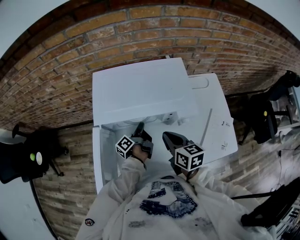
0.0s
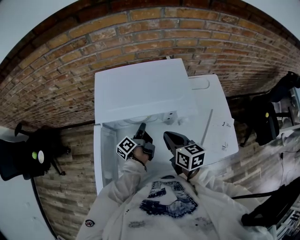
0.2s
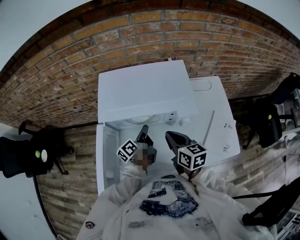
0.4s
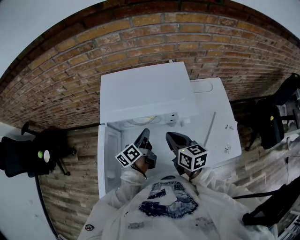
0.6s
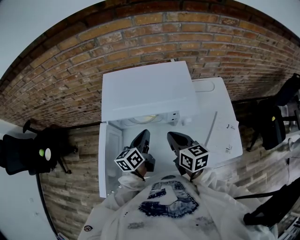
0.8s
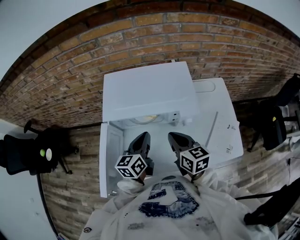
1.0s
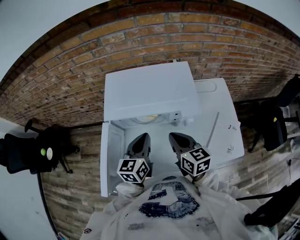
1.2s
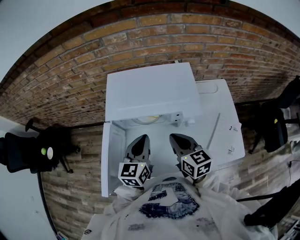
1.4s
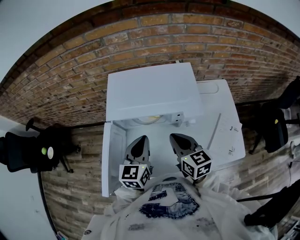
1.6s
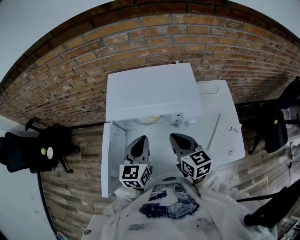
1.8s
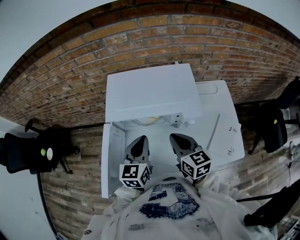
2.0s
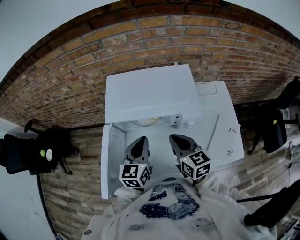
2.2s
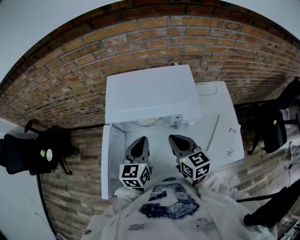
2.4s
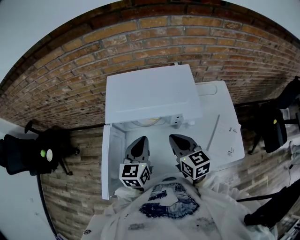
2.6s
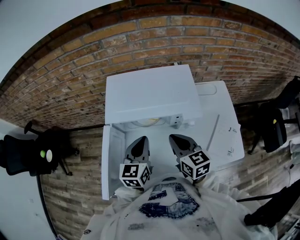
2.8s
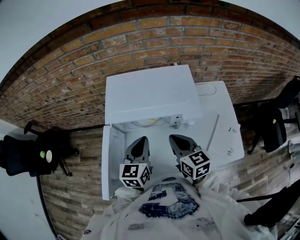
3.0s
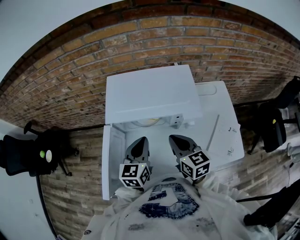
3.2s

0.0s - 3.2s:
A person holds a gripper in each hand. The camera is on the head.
0.0s - 1.6s: The right gripper heads upward, covering about 5 cm.

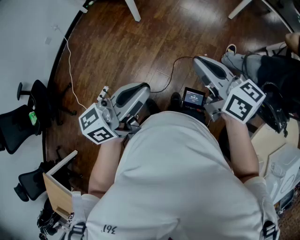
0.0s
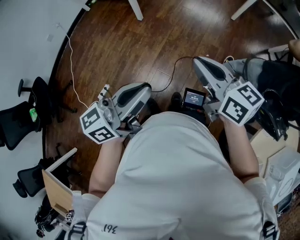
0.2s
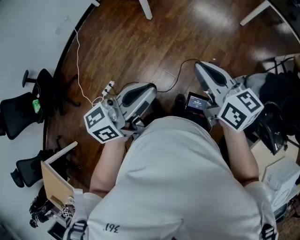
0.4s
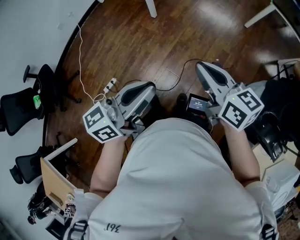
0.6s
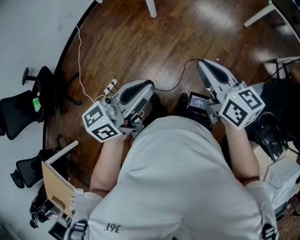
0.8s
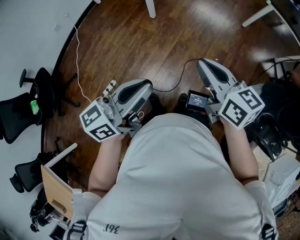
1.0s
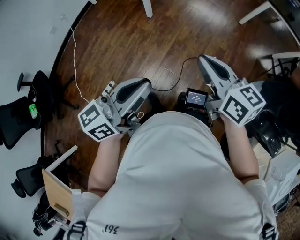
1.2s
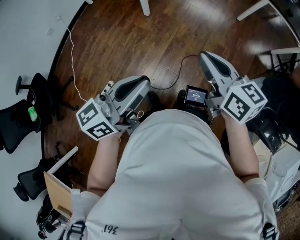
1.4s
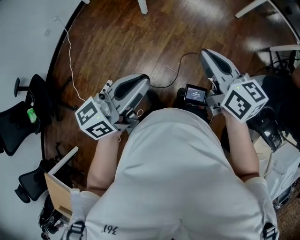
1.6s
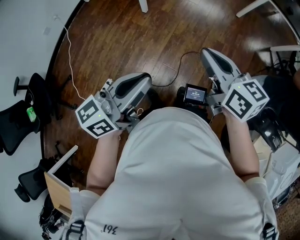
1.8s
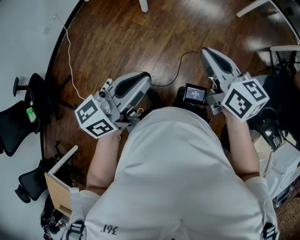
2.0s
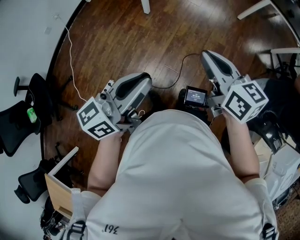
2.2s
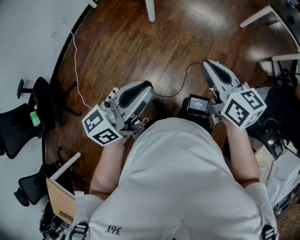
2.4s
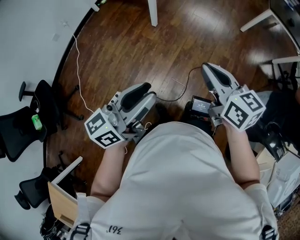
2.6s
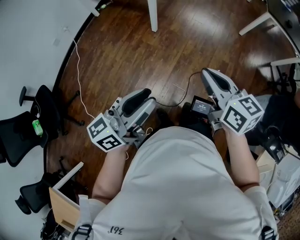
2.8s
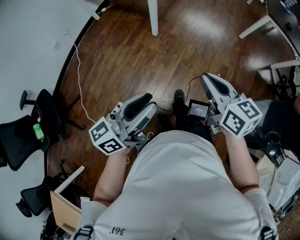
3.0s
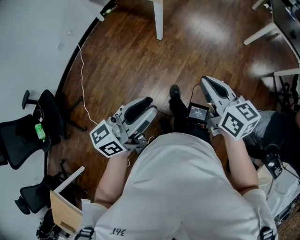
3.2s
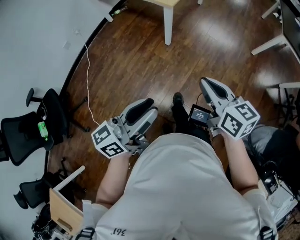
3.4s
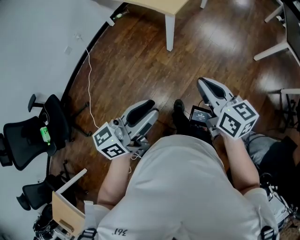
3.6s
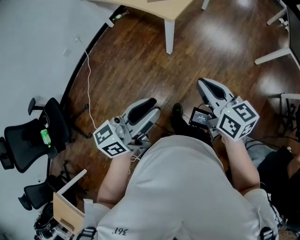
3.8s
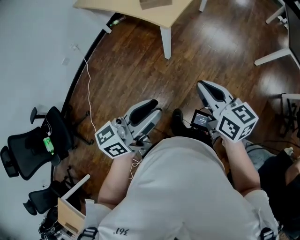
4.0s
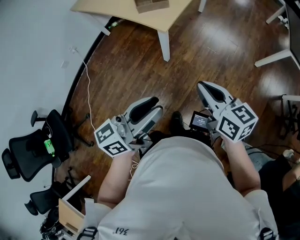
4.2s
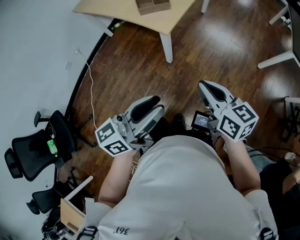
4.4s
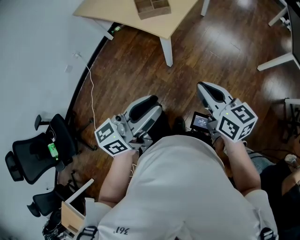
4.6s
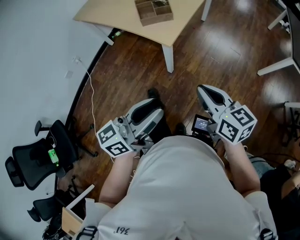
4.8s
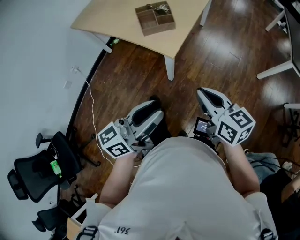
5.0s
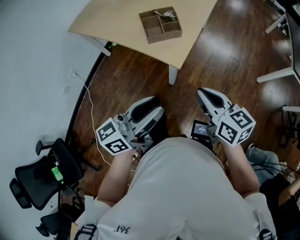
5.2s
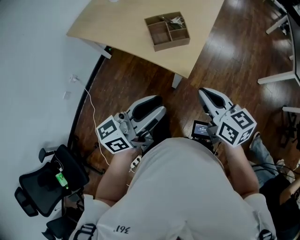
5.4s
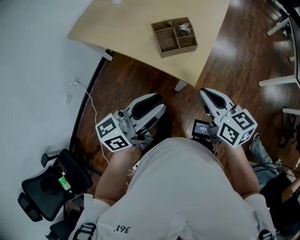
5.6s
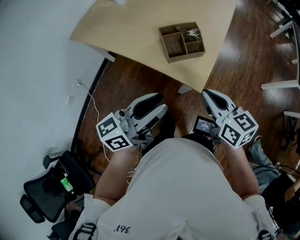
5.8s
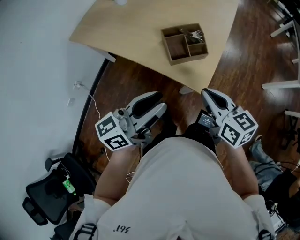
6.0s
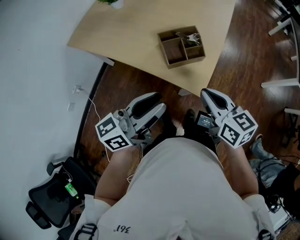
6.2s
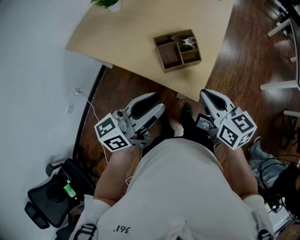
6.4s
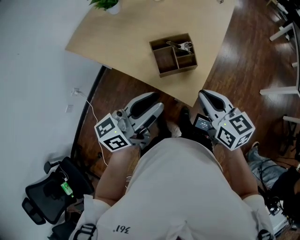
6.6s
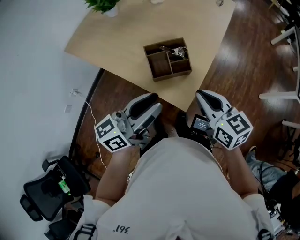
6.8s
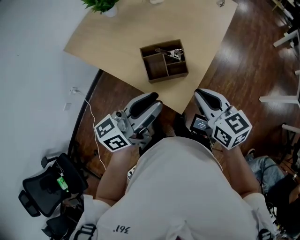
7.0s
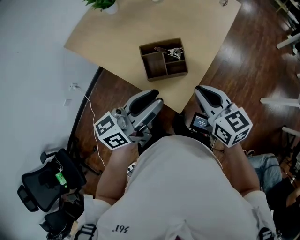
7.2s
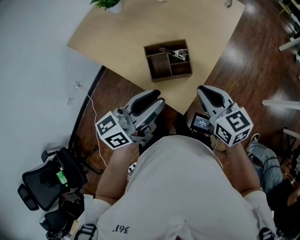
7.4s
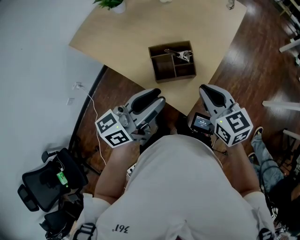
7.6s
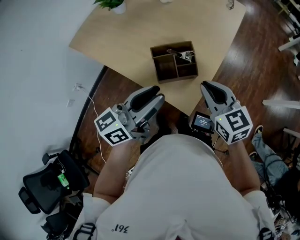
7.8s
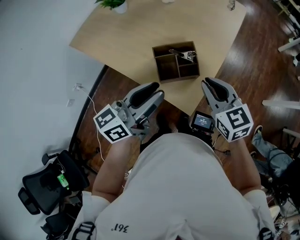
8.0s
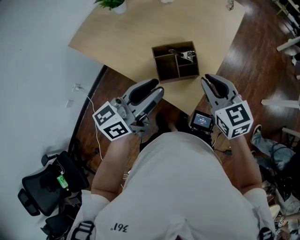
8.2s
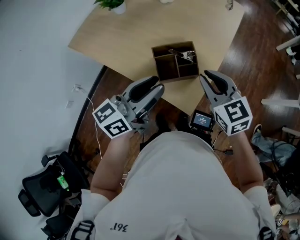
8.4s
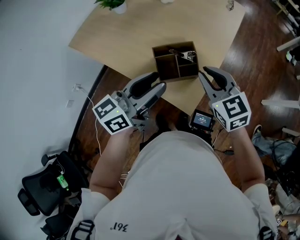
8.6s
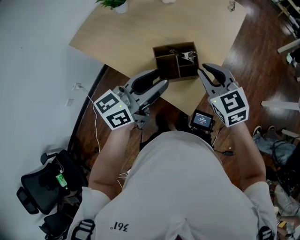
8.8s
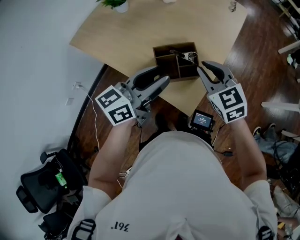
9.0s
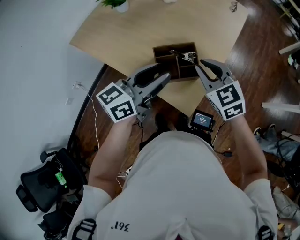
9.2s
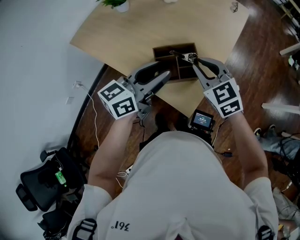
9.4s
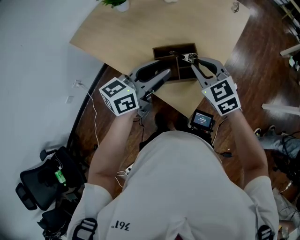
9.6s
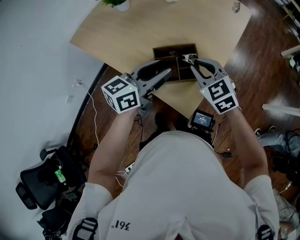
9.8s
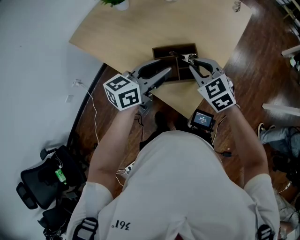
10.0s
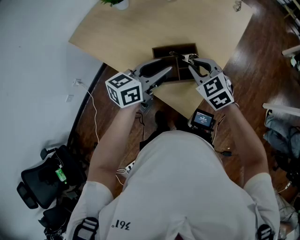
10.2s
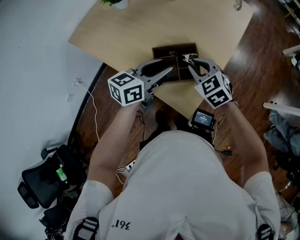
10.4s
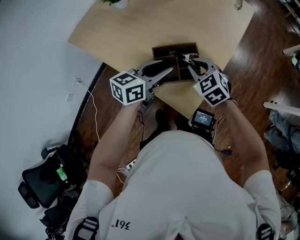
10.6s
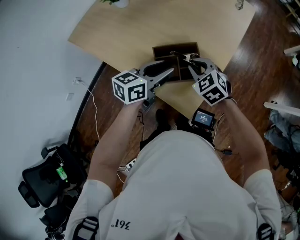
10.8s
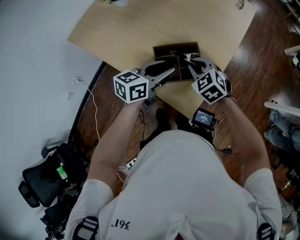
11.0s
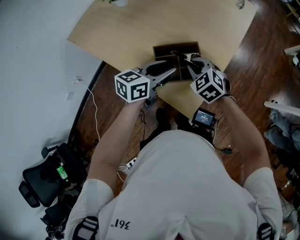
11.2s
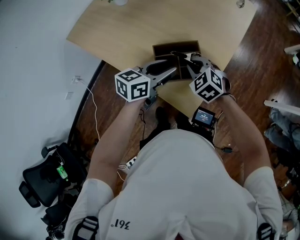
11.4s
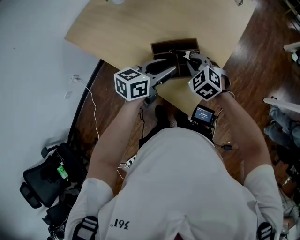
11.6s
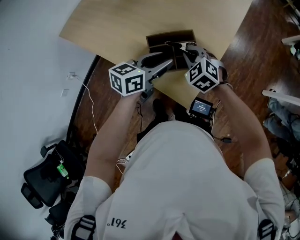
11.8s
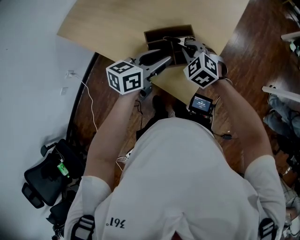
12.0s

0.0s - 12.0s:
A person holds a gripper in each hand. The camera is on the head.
0.0s - 1.6s: Both grippers travel together to the left, some 10 cm.
1.6s - 3.0s: The two grippers go roughly 10 cm to the left. The left gripper opens up.
3.0s - 4.4s: Both grippers travel together forward, about 30 cm.
4.4s - 6.0s: The grippers both shift forward and to the left by some 40 cm.
6.0s - 7.6s: The grippers both shift forward and to the right by about 15 cm.
7.6s - 9.0s: Both grippers move forward, approximately 5 cm. The right gripper changes its angle by about 20 degrees.
9.0s - 10.4s: The right gripper moves downward, roughly 10 cm; the left gripper moves downward and forward, about 10 cm.
10.4s - 12.0s: The right gripper changes place by some 5 cm.

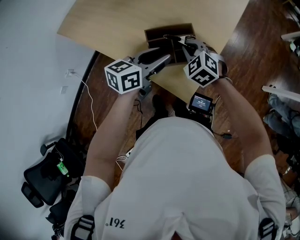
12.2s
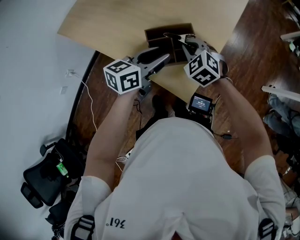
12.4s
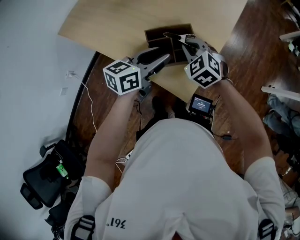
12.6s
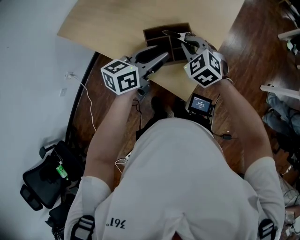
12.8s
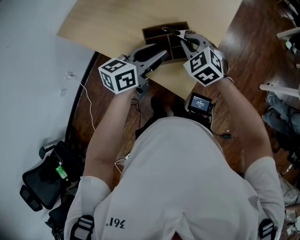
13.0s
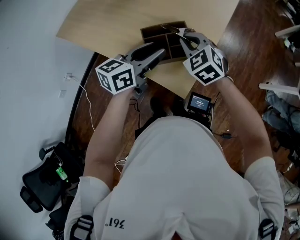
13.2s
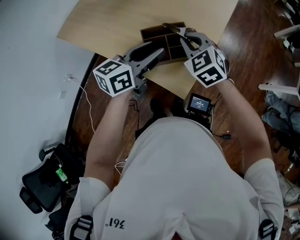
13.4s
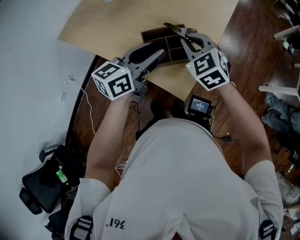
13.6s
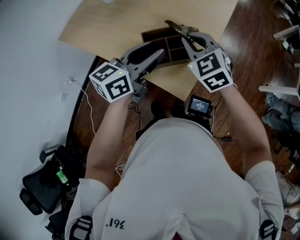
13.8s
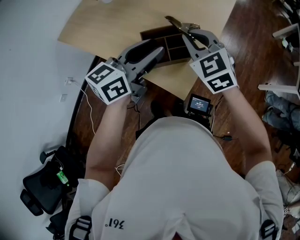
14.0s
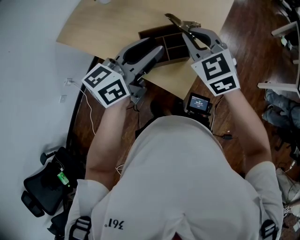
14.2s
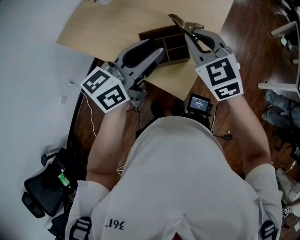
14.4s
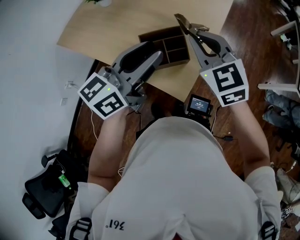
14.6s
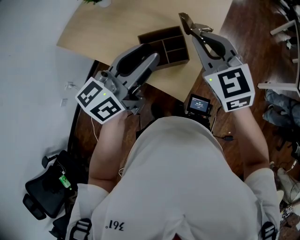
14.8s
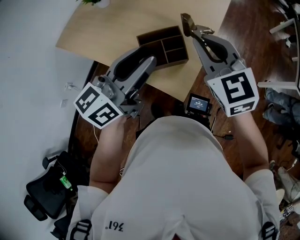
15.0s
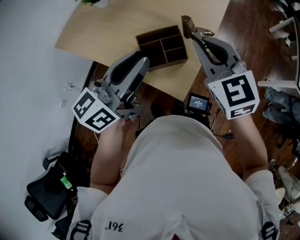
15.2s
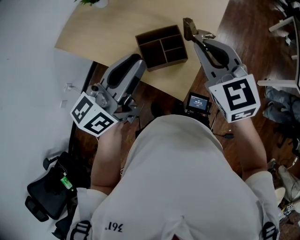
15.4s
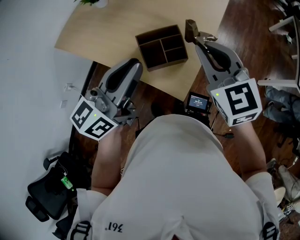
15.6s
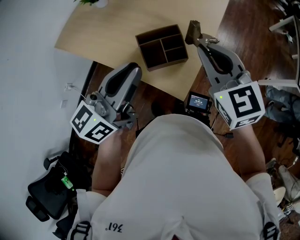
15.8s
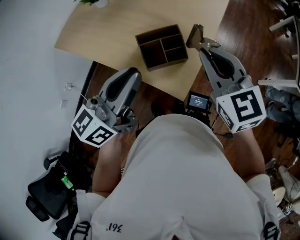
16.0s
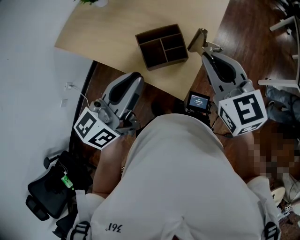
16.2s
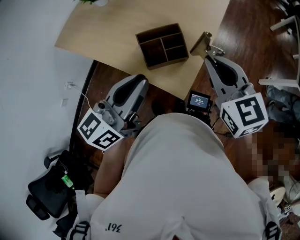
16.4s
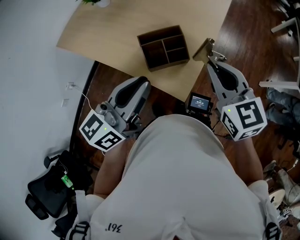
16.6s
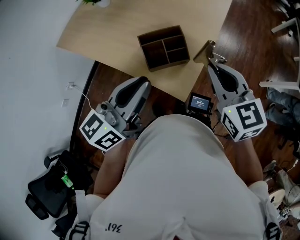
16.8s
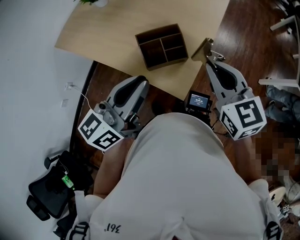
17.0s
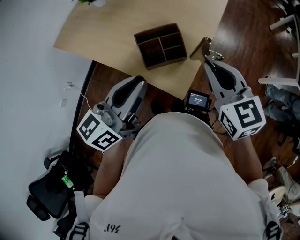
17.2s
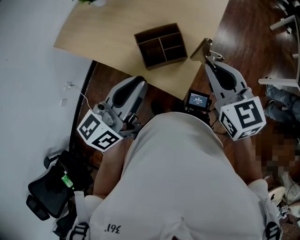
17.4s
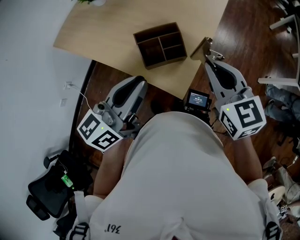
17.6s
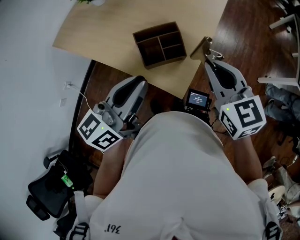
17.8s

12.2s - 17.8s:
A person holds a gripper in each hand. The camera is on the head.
12.2s - 13.6s: Both grippers move upward, some 10 cm.
13.6s - 15.0s: The two grippers go roughly 10 cm upward.
15.0s - 16.4s: The right gripper ends up some 5 cm from where it was. Meanwhile the left gripper travels backward by approximately 5 cm, and closes its fingers.
16.4s - 17.8s: The grippers make only small movements.

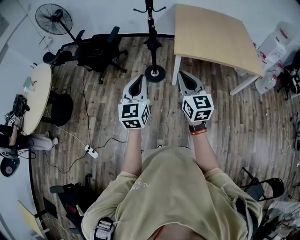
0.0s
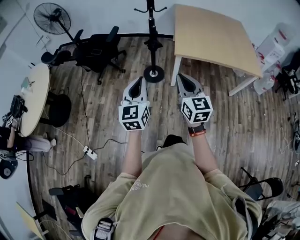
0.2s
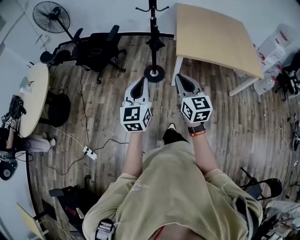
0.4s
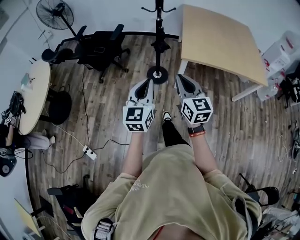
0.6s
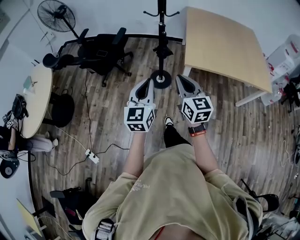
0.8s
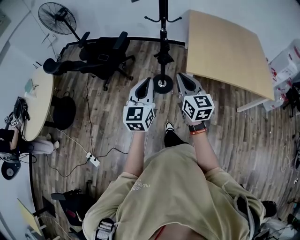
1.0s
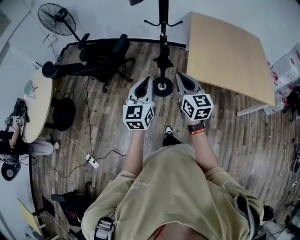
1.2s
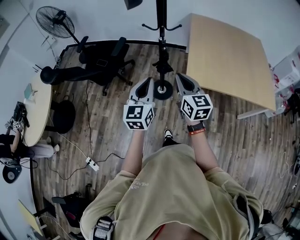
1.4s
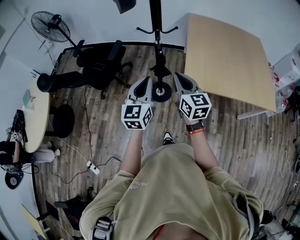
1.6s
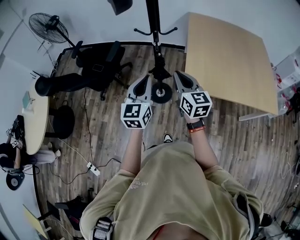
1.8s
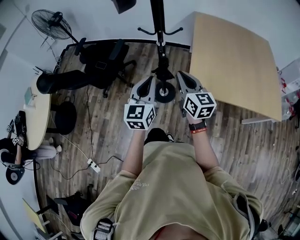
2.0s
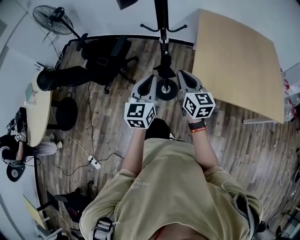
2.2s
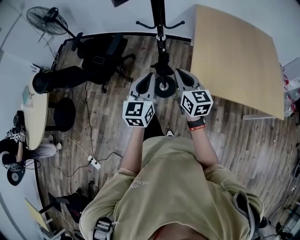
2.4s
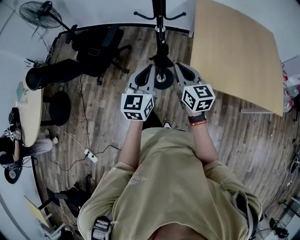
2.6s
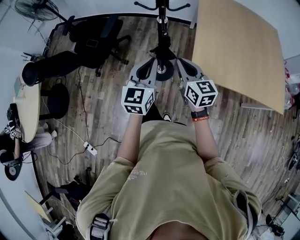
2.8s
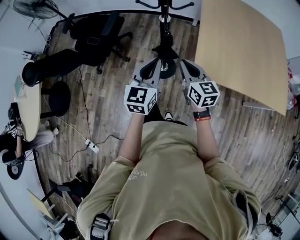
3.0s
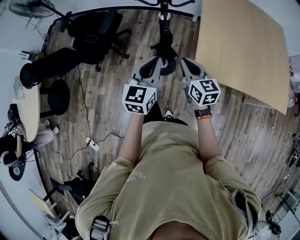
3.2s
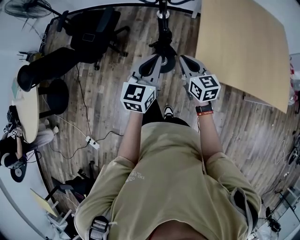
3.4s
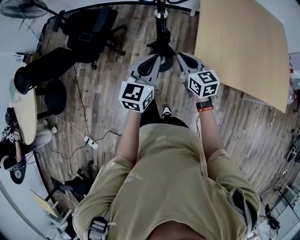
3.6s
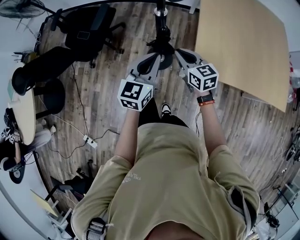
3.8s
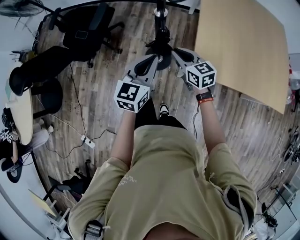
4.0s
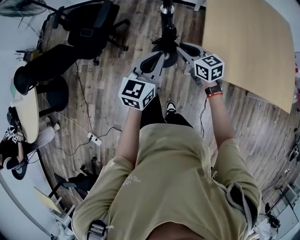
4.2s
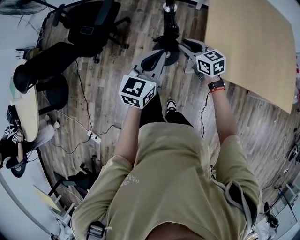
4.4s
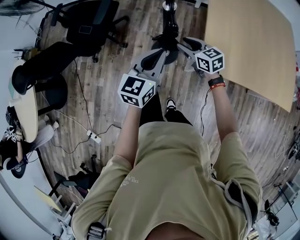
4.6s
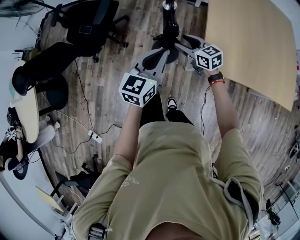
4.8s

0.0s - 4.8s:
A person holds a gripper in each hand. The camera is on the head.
0.0s - 1.6s: Both grippers travel together forward, some 40 cm.
1.6s - 3.2s: The grippers both shift forward and downward by about 25 cm.
3.2s - 4.8s: The left gripper is displaced downward and forward by some 10 cm. The right gripper moves downward and forward, approximately 20 cm, rotates roughly 20 degrees, and opens its fingers.
